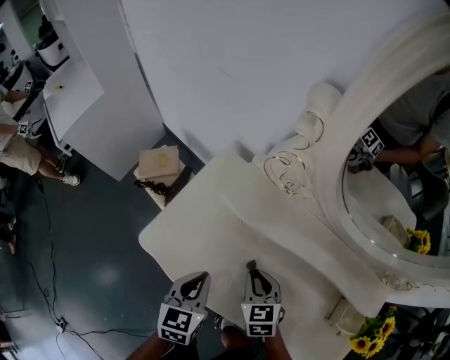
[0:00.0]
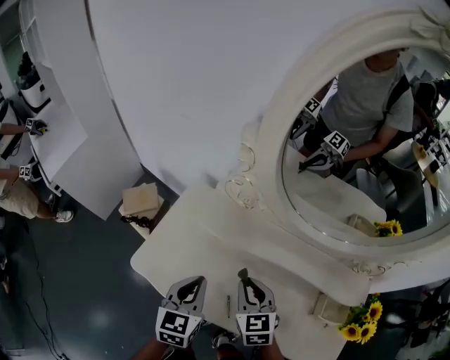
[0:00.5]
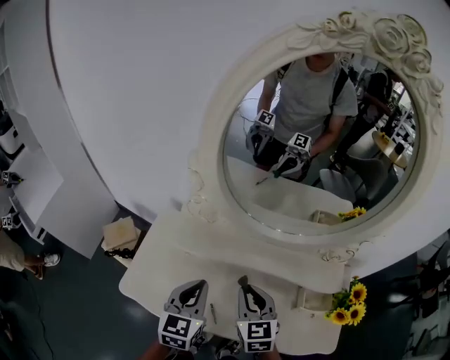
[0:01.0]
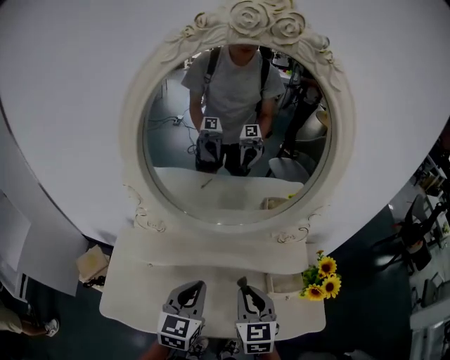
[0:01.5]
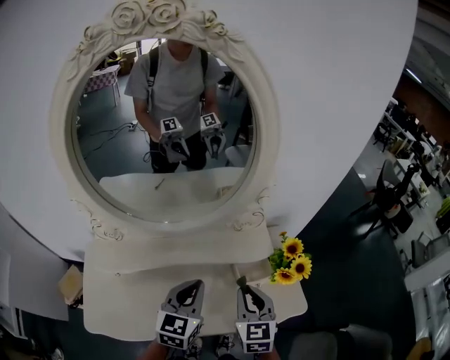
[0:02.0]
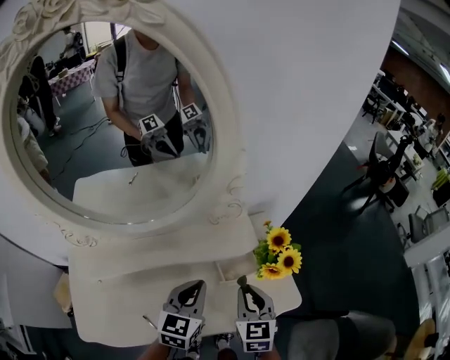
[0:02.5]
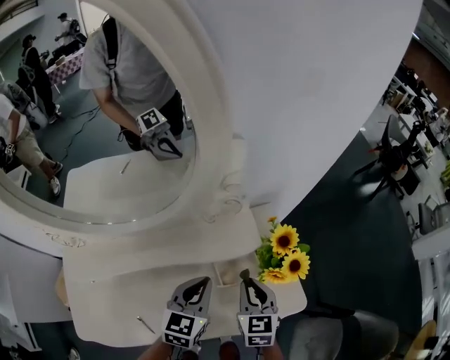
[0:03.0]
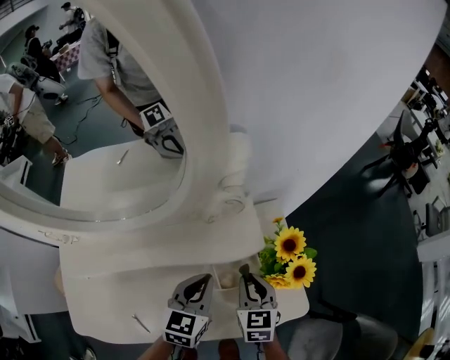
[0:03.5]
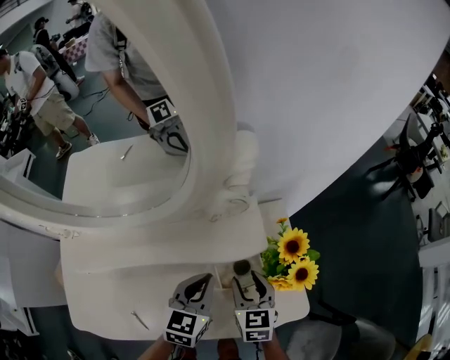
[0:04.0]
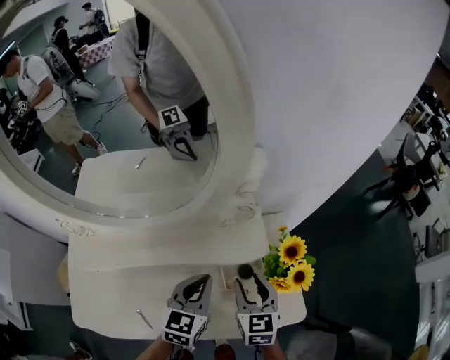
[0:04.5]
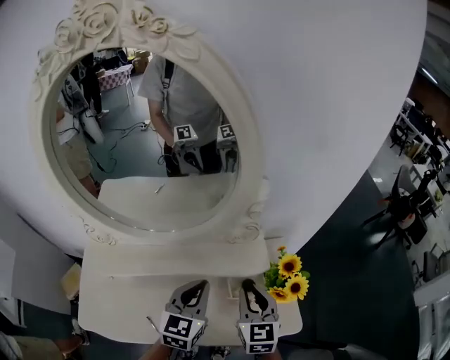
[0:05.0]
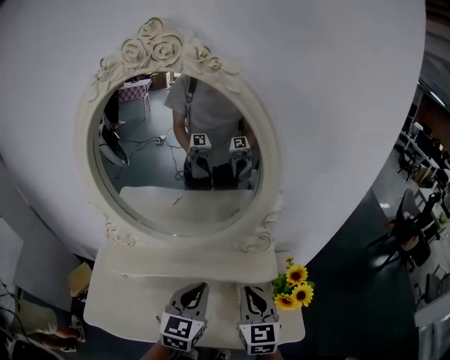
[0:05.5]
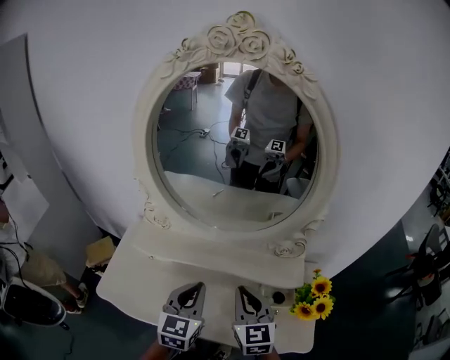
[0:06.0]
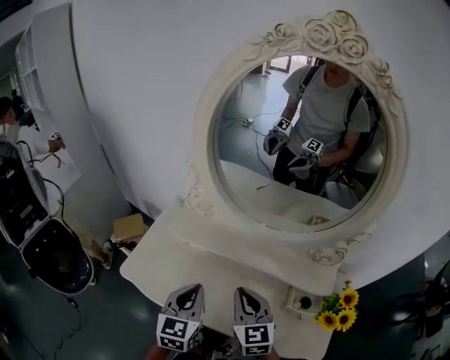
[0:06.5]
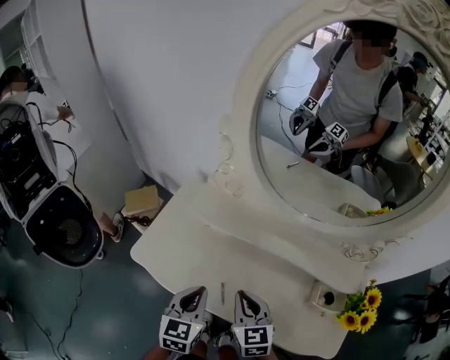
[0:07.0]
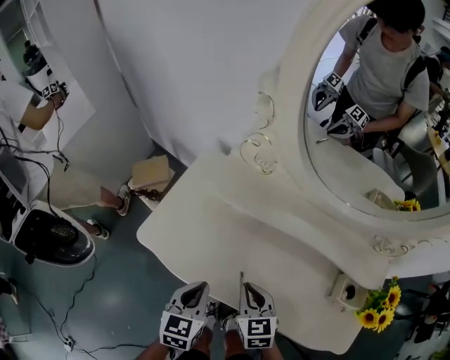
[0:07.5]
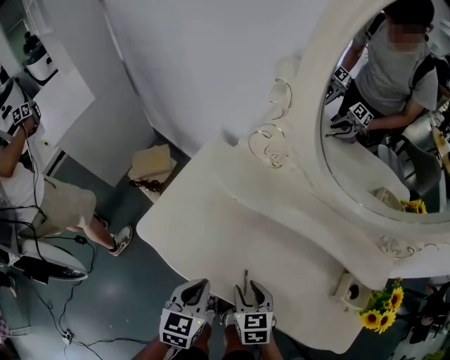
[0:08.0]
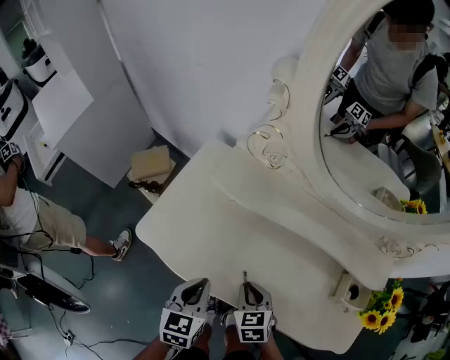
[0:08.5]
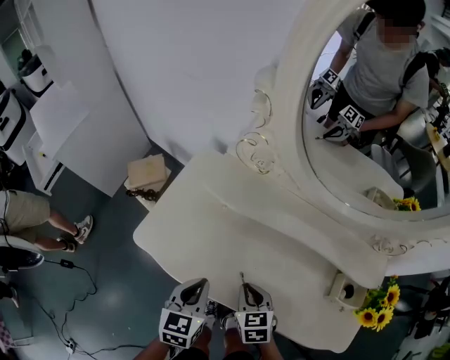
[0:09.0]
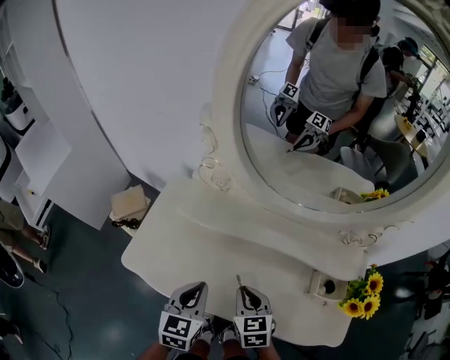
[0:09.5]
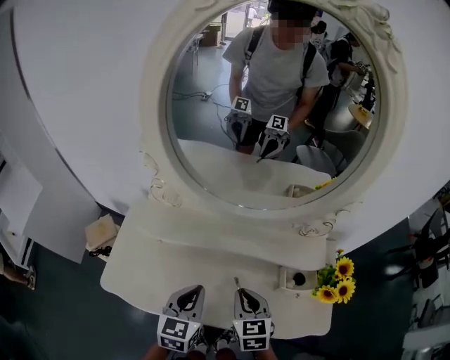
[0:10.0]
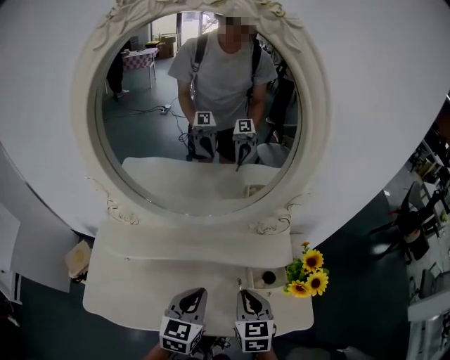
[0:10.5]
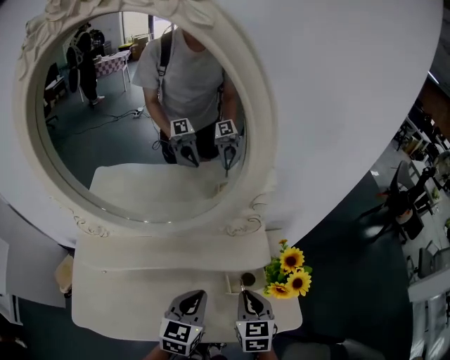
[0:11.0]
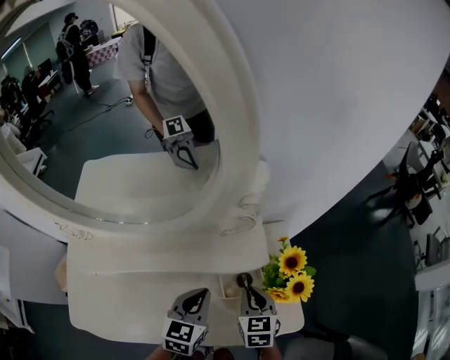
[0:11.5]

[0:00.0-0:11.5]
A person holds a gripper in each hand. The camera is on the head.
0:00.0 to 0:02.0: The right gripper ends up about 40 cm from where it was, and turns by roughly 50 degrees. Meanwhile the left gripper moves approximately 40 cm, and swivels approximately 50 degrees.
0:02.0 to 0:04.0: The left gripper goes about 20 cm downward, to the right and forward. Meanwhile the right gripper moves downward, forward and to the right, roughly 20 cm, and opens up.
0:04.0 to 0:06.0: The left gripper shifts by approximately 25 cm, and rotates approximately 30 degrees. The right gripper heads upward, covering roughly 20 cm, changes its angle by approximately 30 degrees, and closes.
0:06.0 to 0:07.5: Both grippers travel together to the left and downward, some 30 cm. The left gripper swivels approximately 30 degrees. Meanwhile the right gripper changes its angle by approximately 30 degrees.
0:07.5 to 0:09.5: The right gripper heads to the right, covering some 5 cm, and opens, then closes again. The left gripper travels to the right and upward by some 10 cm.
0:09.5 to 0:11.5: The left gripper shifts by some 35 cm, and swivels about 30 degrees. The right gripper moves about 10 cm upward and comes back, and rotates roughly 30 degrees.

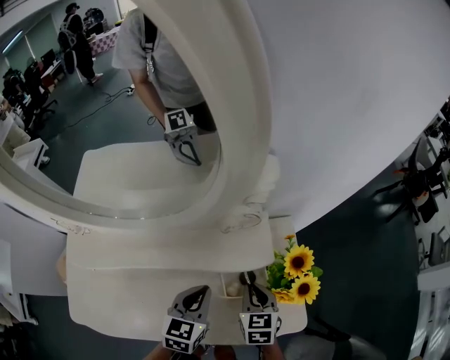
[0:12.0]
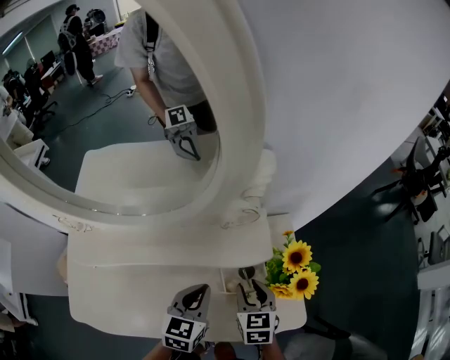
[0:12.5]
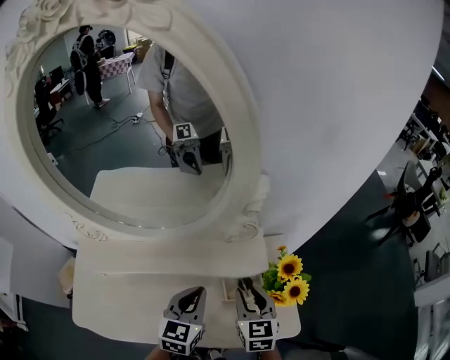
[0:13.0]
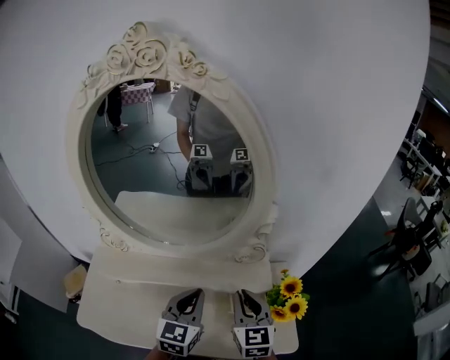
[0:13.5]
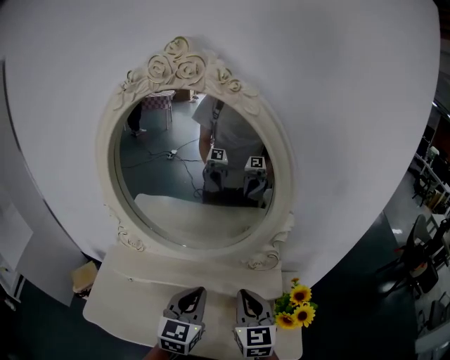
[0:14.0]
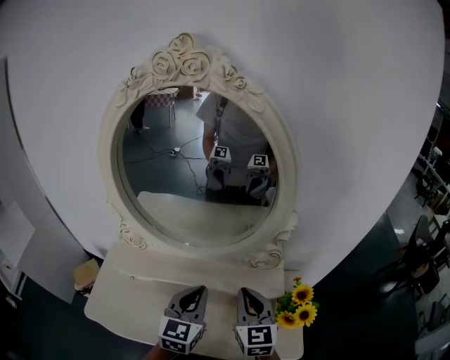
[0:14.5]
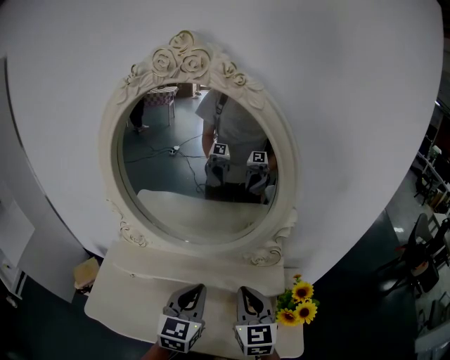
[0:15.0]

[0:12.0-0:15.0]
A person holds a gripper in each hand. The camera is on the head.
0:12.0 to 0:13.5: The two grippers go about 20 cm upward. The right gripper turns by some 30 degrees, and opens, then closes once more. Meanwhile the left gripper swivels about 20 degrees.
0:13.5 to 0:15.0: The right gripper shifts by about 5 cm. Meanwhile the left gripper changes place by some 5 cm.

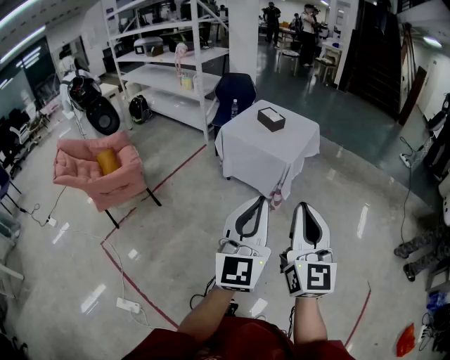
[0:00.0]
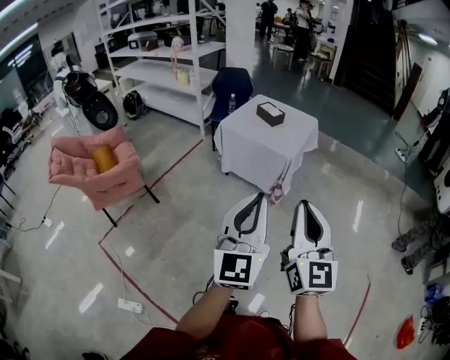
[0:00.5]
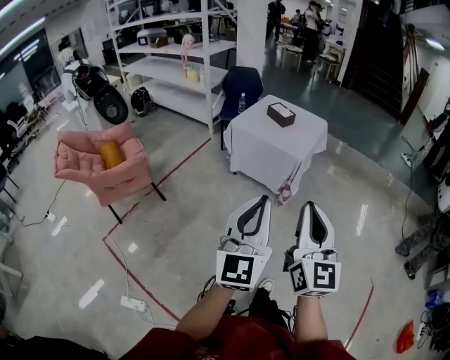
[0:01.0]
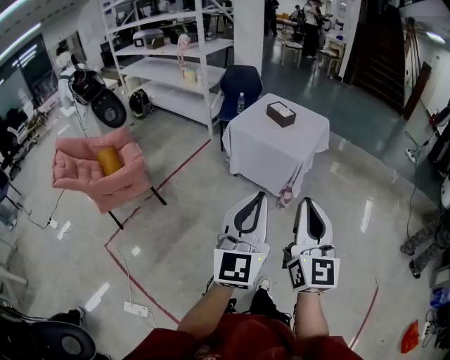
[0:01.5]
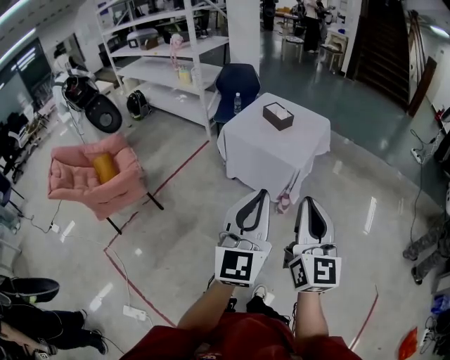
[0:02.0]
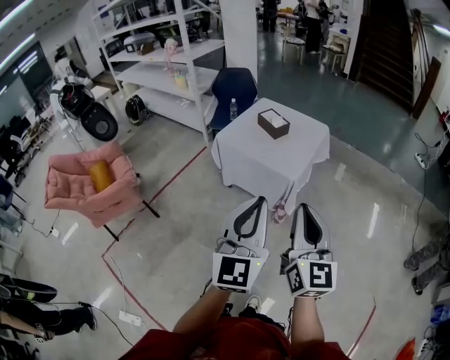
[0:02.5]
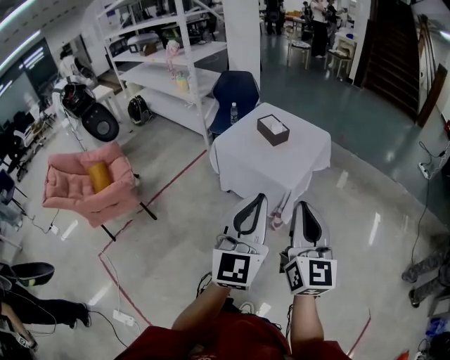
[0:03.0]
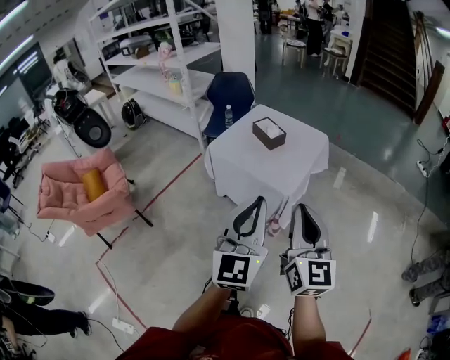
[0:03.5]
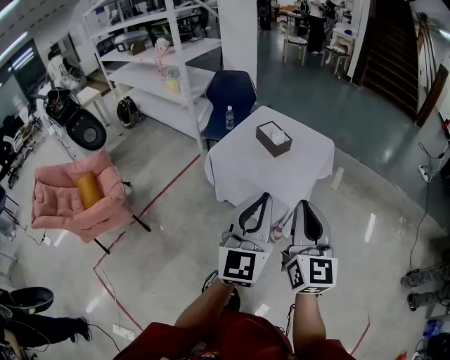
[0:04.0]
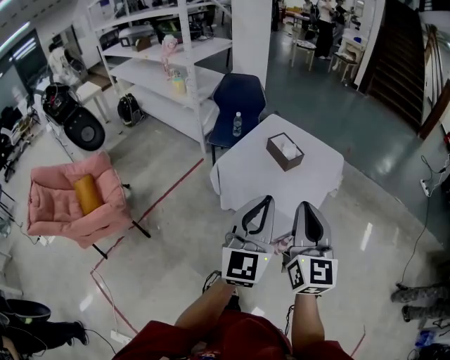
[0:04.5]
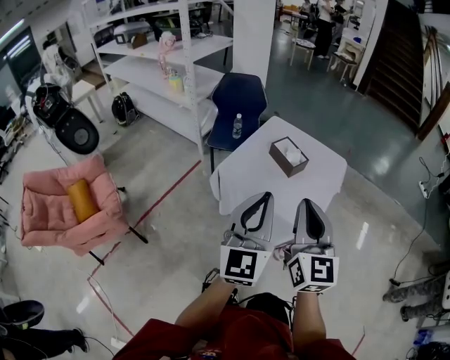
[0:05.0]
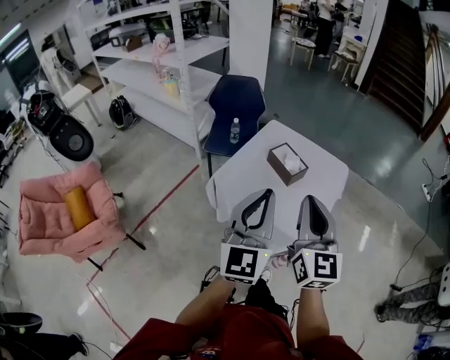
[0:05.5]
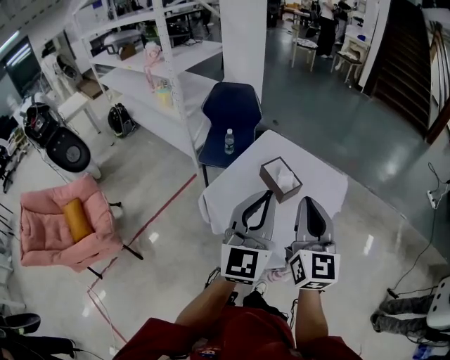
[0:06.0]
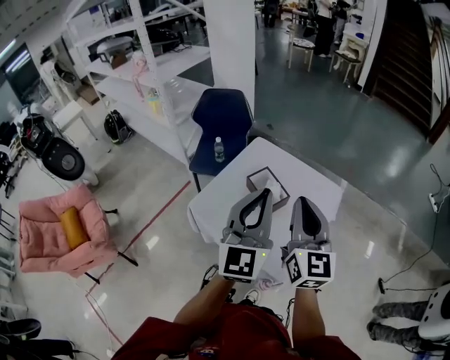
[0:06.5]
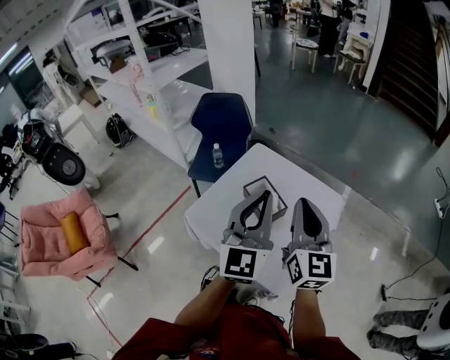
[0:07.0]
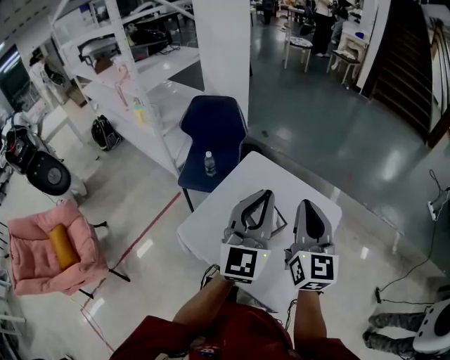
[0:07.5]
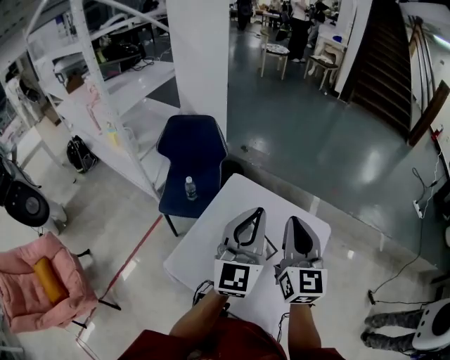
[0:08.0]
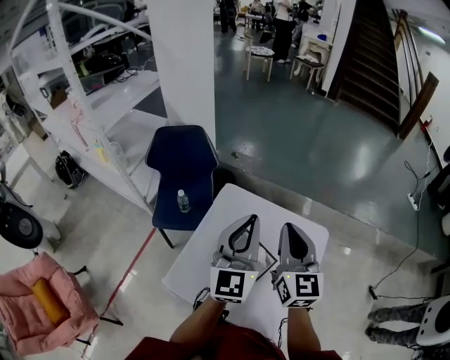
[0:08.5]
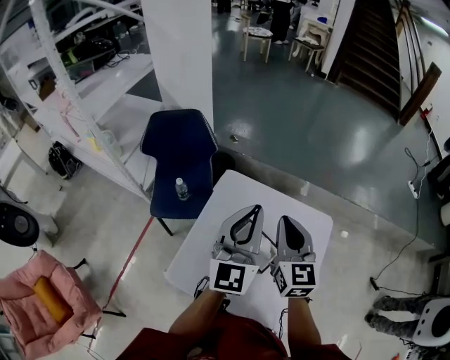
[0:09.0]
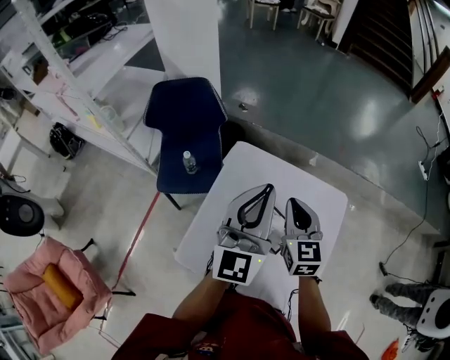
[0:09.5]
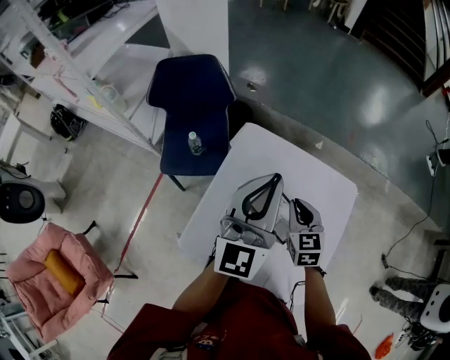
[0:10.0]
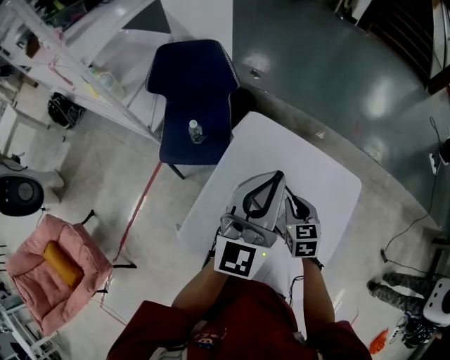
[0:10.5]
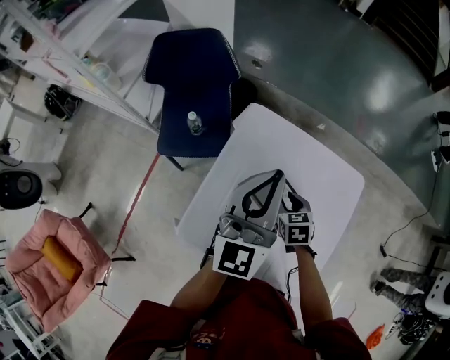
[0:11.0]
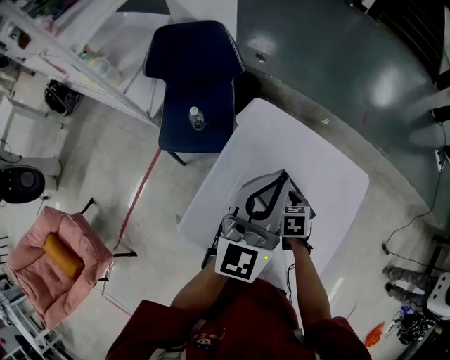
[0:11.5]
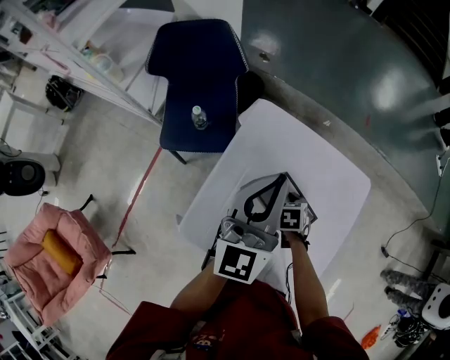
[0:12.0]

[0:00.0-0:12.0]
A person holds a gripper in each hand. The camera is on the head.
0:00.0 to 0:02.0: The grippers both shift forward by roughly 20 cm.
0:02.0 to 0:04.0: Both grippers move forward, about 30 cm.
0:04.0 to 0:06.0: The grippers both shift forward by some 35 cm.
0:06.0 to 0:08.0: The two grippers go some 35 cm forward.
0:08.0 to 0:10.0: The left gripper moves forward, to the left and downward, about 15 cm. The right gripper heads downward, covering some 25 cm, and tips its fingers downward by about 30 degrees.
0:10.0 to 0:12.0: The right gripper is displaced downward by about 20 cm, angles its fingers downward, by roughly 40 degrees, and opens up; the left gripper shifts some 5 cm downward.
